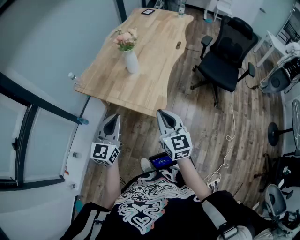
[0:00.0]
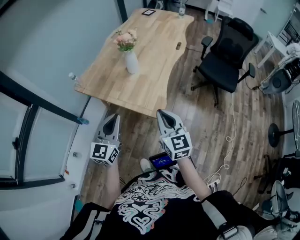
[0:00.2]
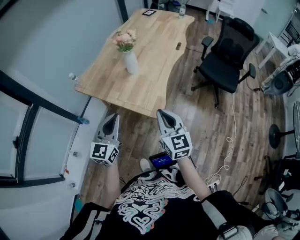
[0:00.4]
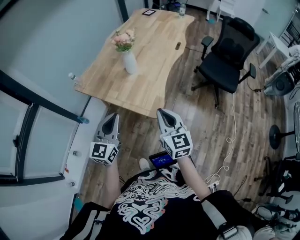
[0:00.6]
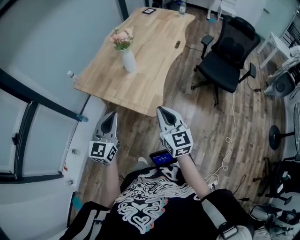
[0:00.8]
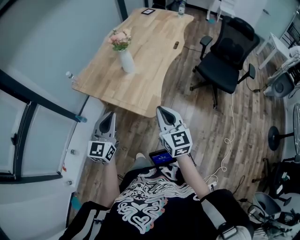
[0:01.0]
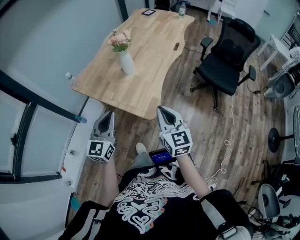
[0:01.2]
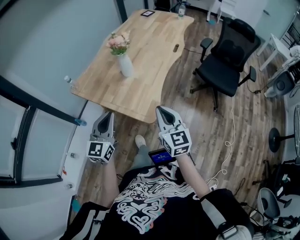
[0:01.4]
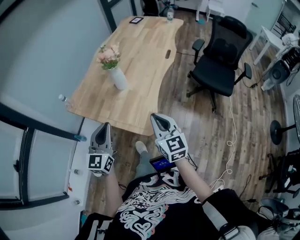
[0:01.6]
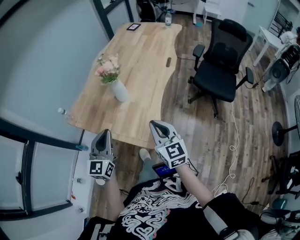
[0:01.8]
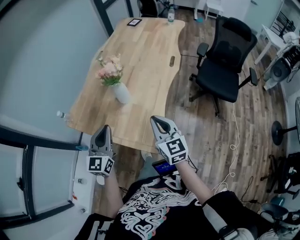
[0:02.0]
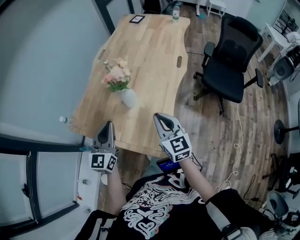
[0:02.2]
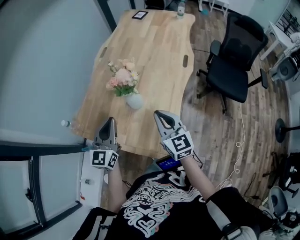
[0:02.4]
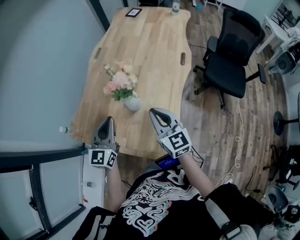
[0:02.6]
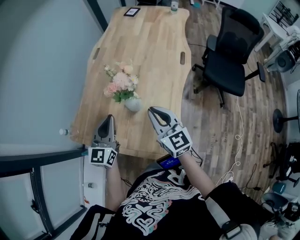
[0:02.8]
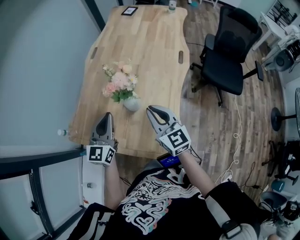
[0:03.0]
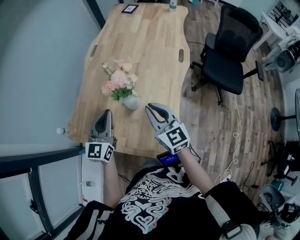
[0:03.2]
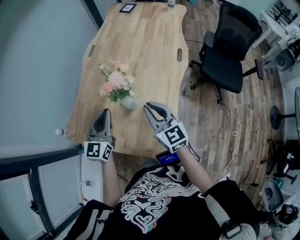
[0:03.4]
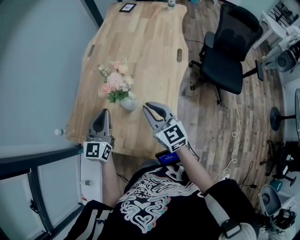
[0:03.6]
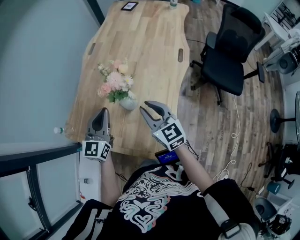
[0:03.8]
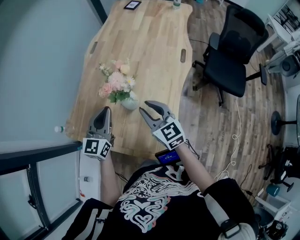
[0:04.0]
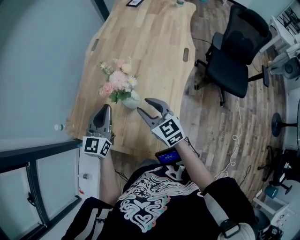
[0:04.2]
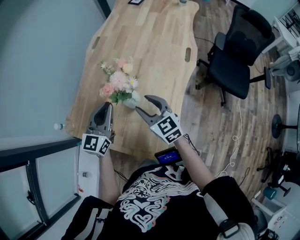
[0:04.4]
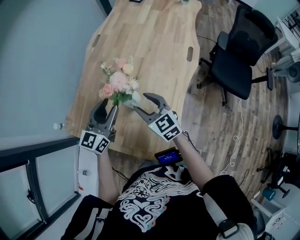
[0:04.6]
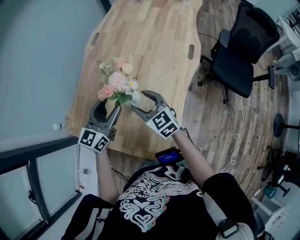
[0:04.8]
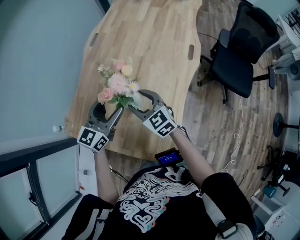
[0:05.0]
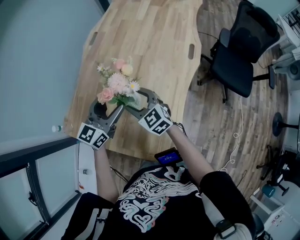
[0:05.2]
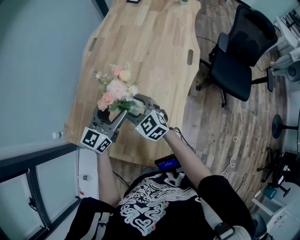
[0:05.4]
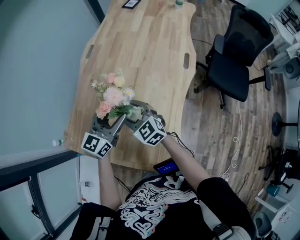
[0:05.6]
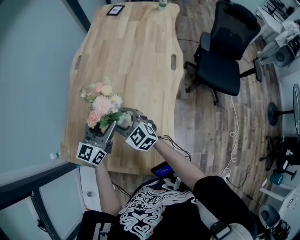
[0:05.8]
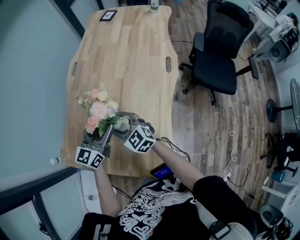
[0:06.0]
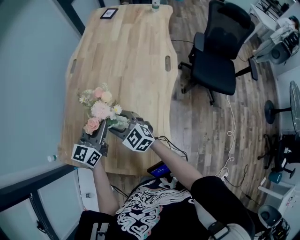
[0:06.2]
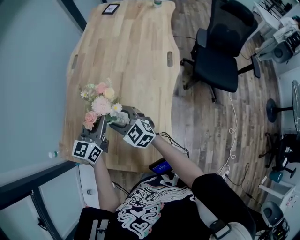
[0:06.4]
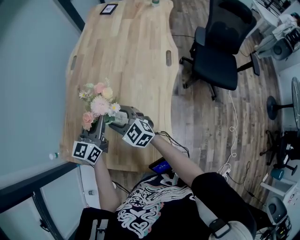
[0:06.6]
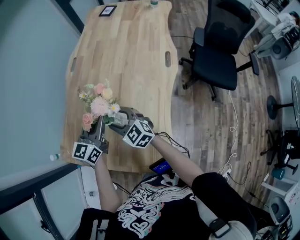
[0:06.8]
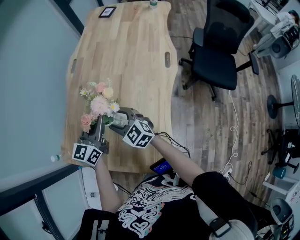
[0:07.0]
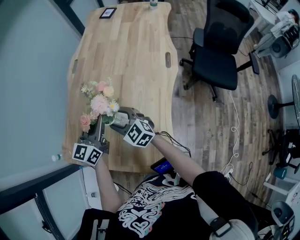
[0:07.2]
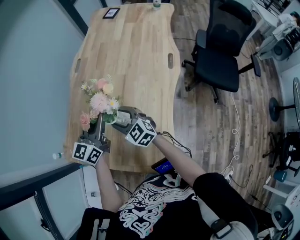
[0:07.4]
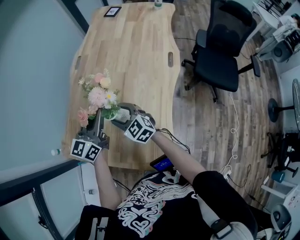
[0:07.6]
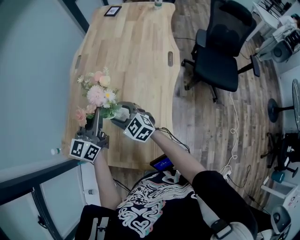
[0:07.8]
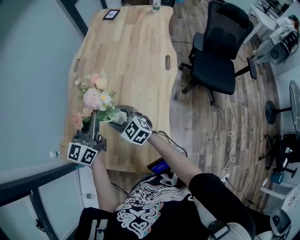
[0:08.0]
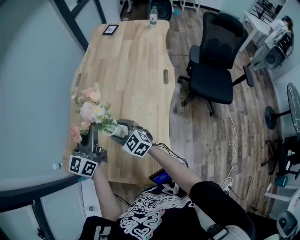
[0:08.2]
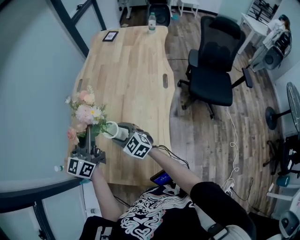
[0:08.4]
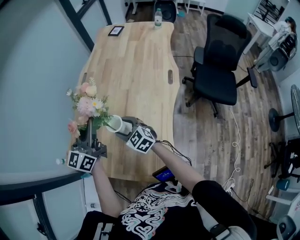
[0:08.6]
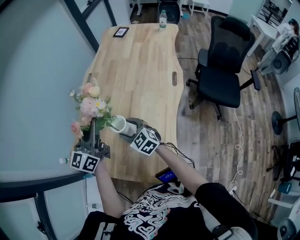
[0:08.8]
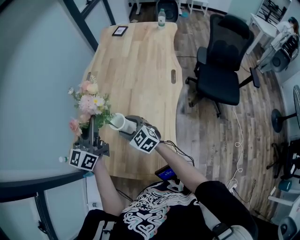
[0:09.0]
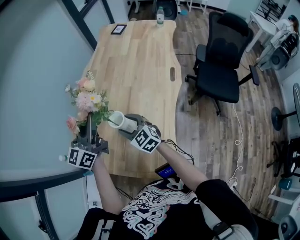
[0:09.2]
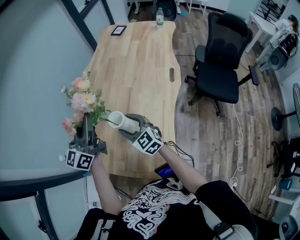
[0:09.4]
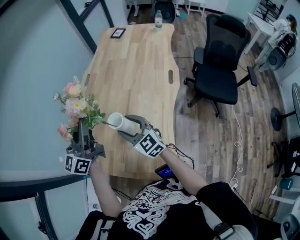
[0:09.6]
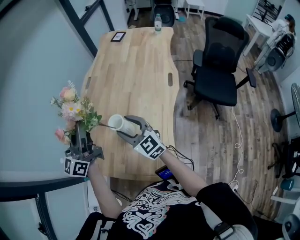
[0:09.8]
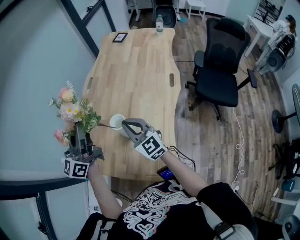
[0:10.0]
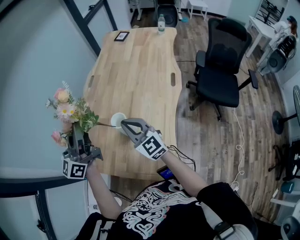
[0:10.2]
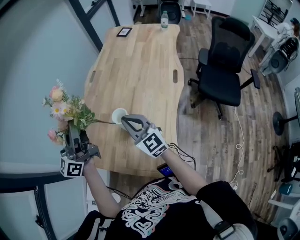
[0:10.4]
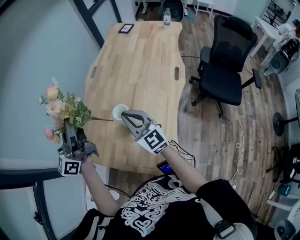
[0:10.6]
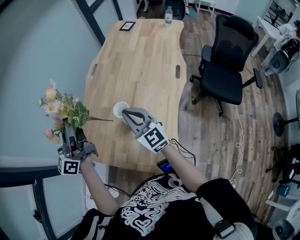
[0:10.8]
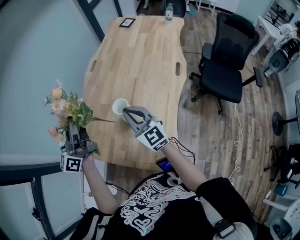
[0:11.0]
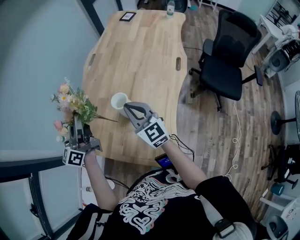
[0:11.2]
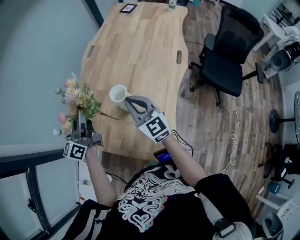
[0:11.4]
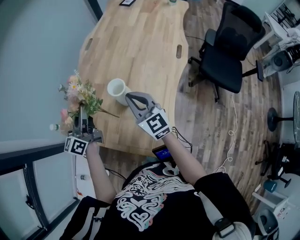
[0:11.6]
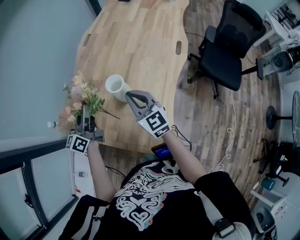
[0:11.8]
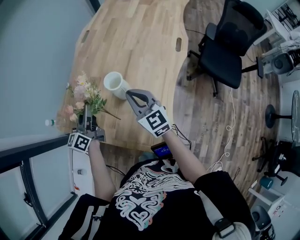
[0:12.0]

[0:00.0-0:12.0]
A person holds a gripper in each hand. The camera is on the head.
0:00.0 to 0:01.6: The two grippers go some 10 cm forward.
0:01.6 to 0:03.0: Both grippers move forward, approximately 30 cm.
0:03.0 to 0:04.4: The right gripper moves downward and forward, roughly 10 cm, and opens. Meanwhile the left gripper shifts by approximately 5 cm.
0:04.4 to 0:06.0: The right gripper is displaced to the left and forward by roughly 10 cm; the left gripper shifts roughly 5 cm forward, and opens.
0:06.0 to 0:07.6: The left gripper heads upward, covering roughly 5 cm, and closes up.
0:07.6 to 0:09.0: The left gripper travels upward by roughly 10 cm.
0:09.0 to 0:10.4: The right gripper is displaced upward by about 15 cm, turns by some 30 degrees, and closes its fingers, while the left gripper shifts about 10 cm upward, to the left and backward.
0:10.4 to 0:12.0: The left gripper travels downward by approximately 25 cm, and rotates approximately 30 degrees, while the right gripper heads downward, covering approximately 10 cm.

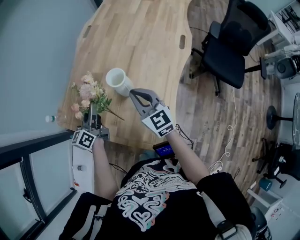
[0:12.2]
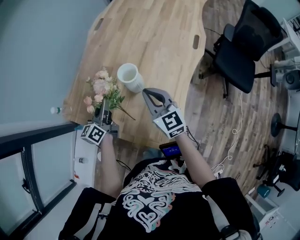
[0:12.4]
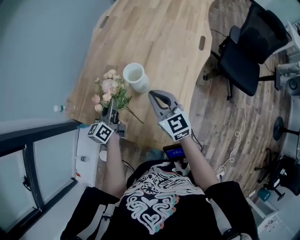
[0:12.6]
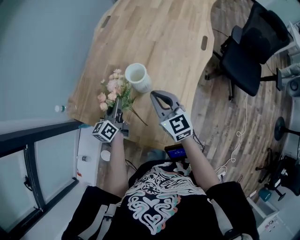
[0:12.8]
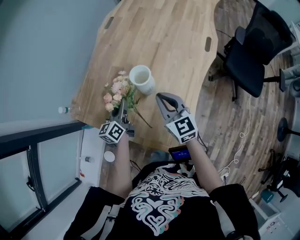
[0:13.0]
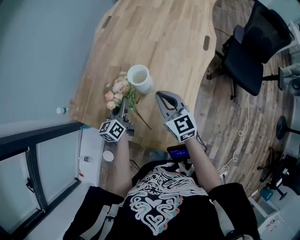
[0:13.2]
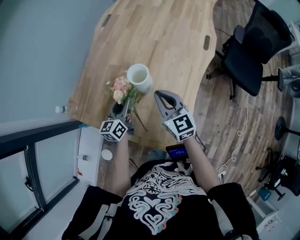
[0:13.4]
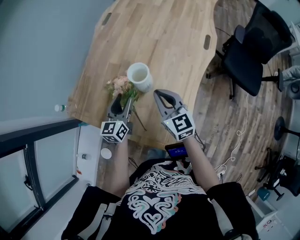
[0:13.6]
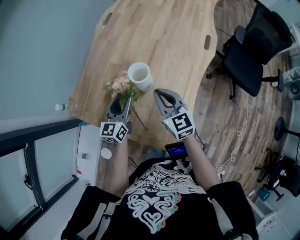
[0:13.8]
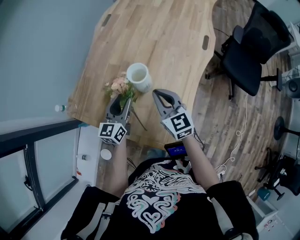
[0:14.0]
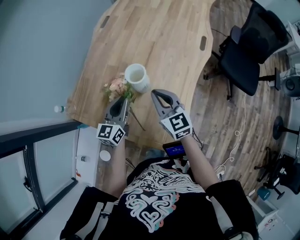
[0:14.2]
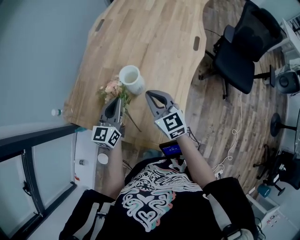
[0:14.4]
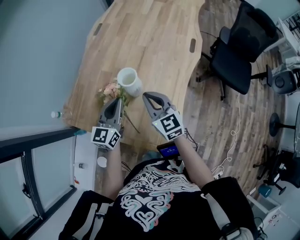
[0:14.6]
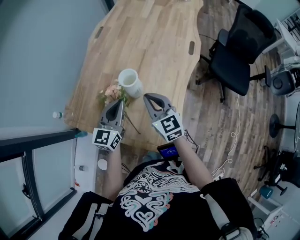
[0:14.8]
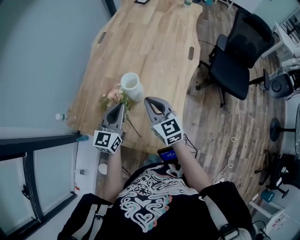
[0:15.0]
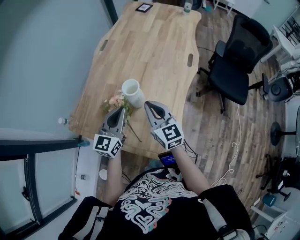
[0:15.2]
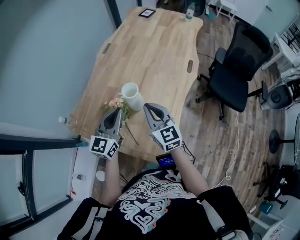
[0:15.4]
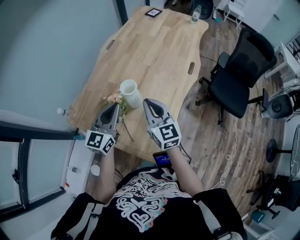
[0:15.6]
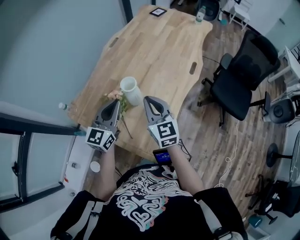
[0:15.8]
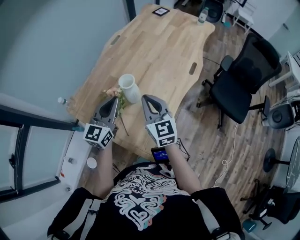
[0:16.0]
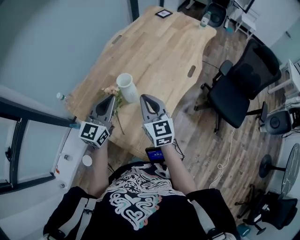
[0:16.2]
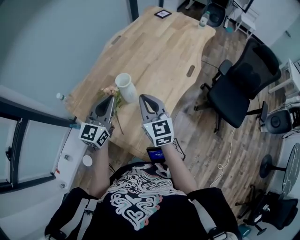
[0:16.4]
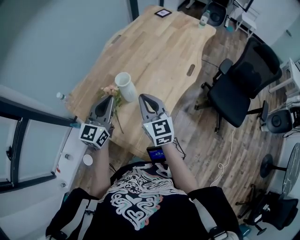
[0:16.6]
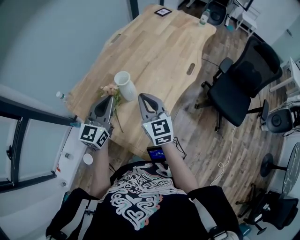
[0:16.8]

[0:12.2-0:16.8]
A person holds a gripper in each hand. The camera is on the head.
0:12.2 to 0:13.8: The left gripper moves downward and to the right, some 10 cm, swivels some 30 degrees, and opens.
0:13.8 to 0:15.2: The right gripper travels upward by about 5 cm; the left gripper moves upward, about 10 cm, and closes.
0:15.2 to 0:16.8: The left gripper shifts approximately 5 cm upward, while the right gripper changes place by some 5 cm.

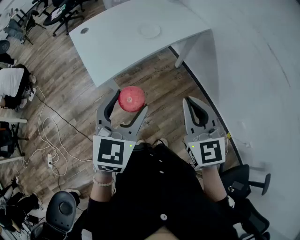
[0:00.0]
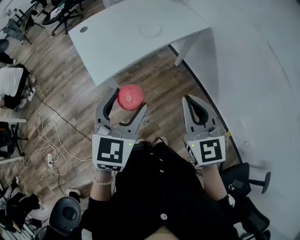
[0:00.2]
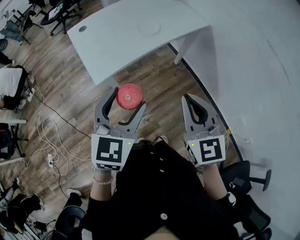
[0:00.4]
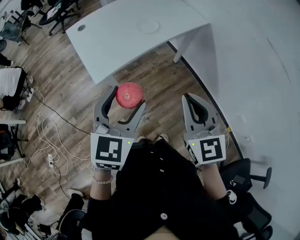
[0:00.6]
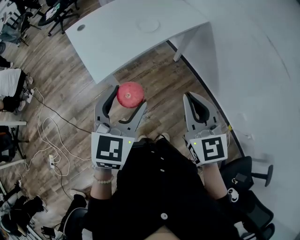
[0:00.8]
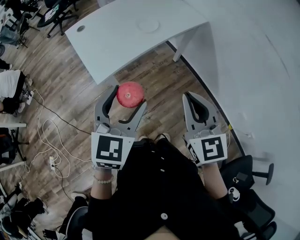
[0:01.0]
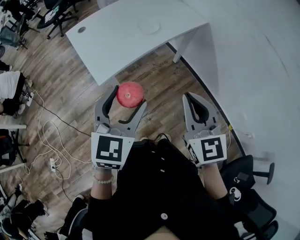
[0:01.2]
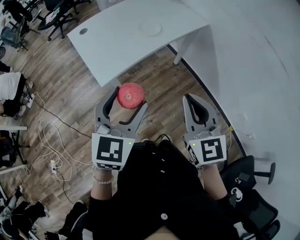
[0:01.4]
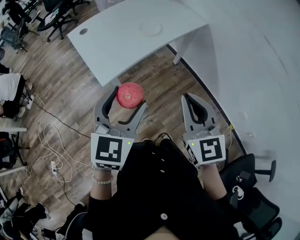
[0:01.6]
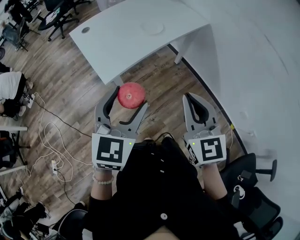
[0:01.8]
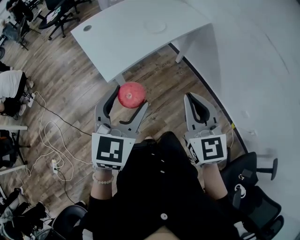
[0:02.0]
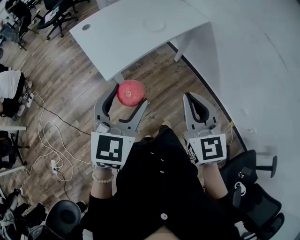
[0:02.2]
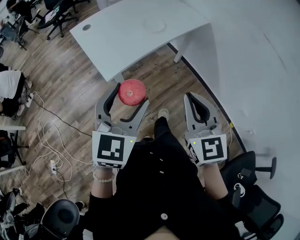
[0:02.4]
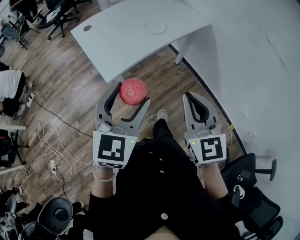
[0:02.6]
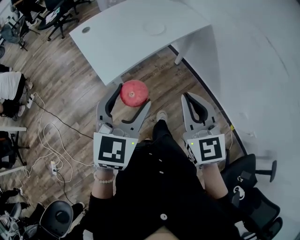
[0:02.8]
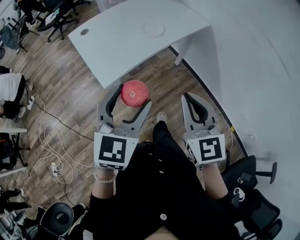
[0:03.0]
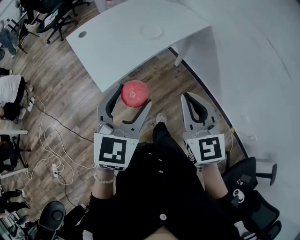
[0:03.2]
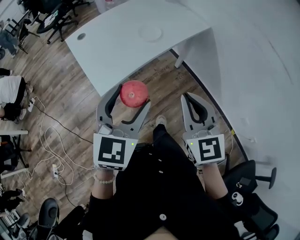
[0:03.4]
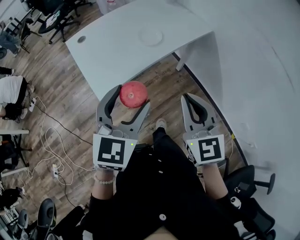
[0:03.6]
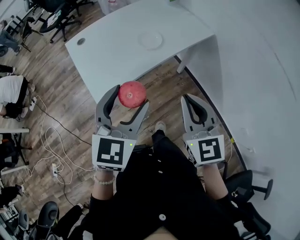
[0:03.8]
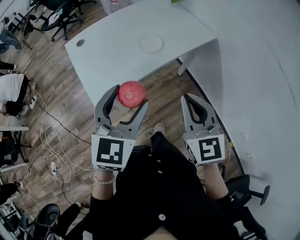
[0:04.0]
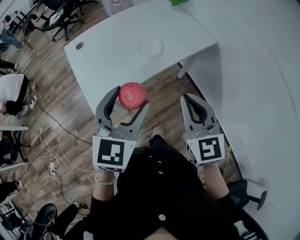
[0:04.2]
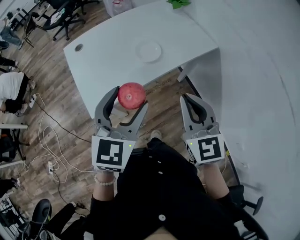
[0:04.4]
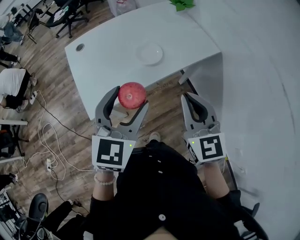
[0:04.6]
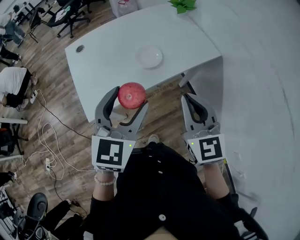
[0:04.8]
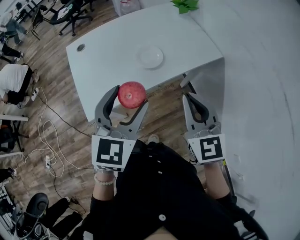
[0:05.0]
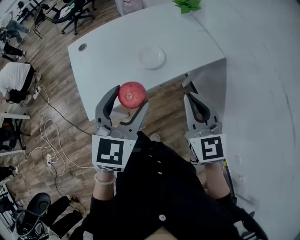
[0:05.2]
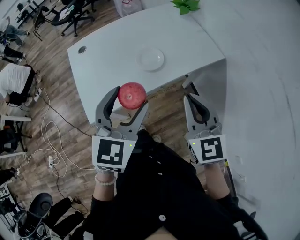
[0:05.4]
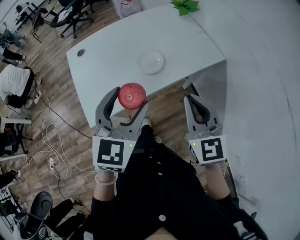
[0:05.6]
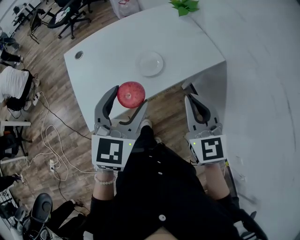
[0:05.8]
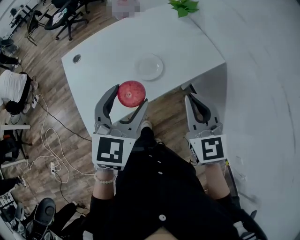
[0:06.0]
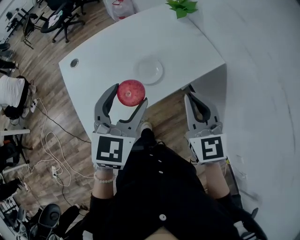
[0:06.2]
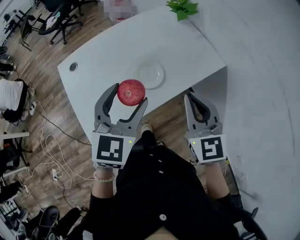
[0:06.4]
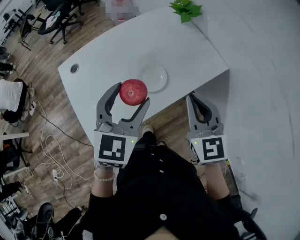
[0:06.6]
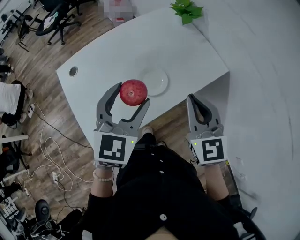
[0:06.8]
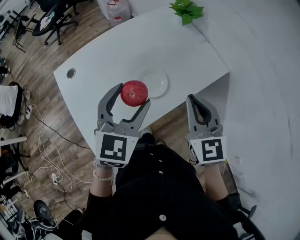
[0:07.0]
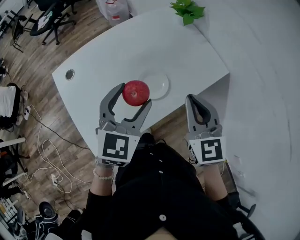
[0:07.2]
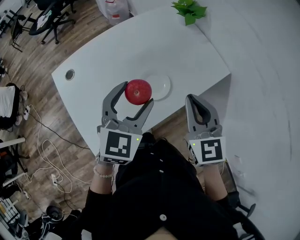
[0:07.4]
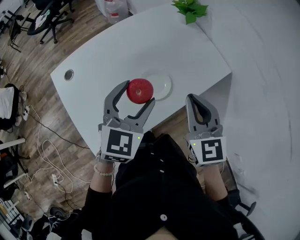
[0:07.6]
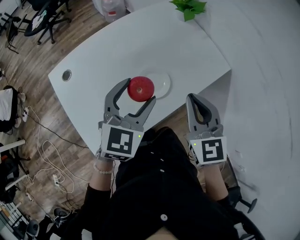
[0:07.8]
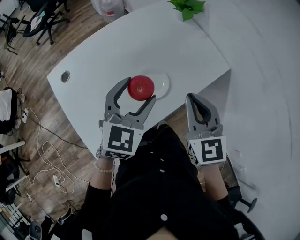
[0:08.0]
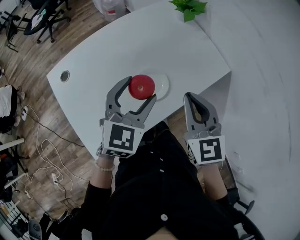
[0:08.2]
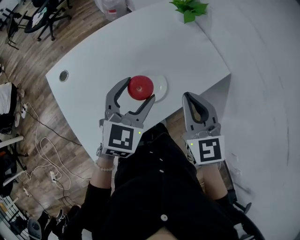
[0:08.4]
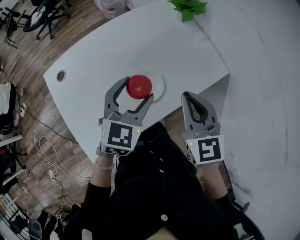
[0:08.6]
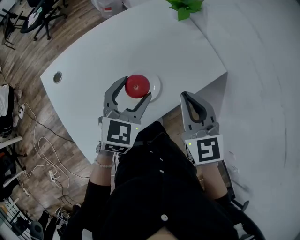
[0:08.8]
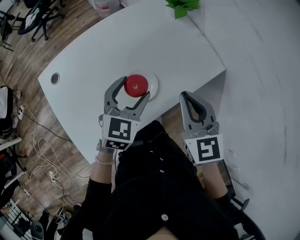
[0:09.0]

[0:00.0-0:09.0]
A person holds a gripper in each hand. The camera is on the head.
0:00.0 to 0:01.6: The grippers both shift to the left by some 5 cm.
0:01.6 to 0:03.0: The grippers move only a little.
0:03.0 to 0:04.4: The grippers both shift forward by roughly 20 cm.
0:04.4 to 0:06.0: Both grippers move forward, roughly 15 cm.
0:06.0 to 0:07.6: The right gripper is displaced forward and to the left by some 15 cm. The left gripper goes roughly 15 cm forward.
0:07.6 to 0:09.0: The right gripper moves roughly 5 cm. Meanwhile the left gripper goes approximately 10 cm downward and forward.
